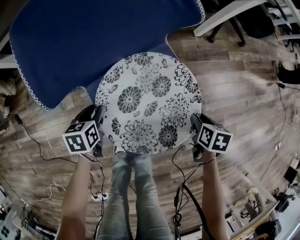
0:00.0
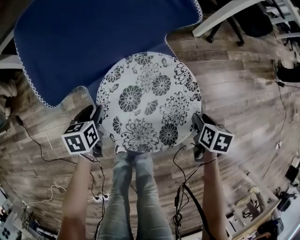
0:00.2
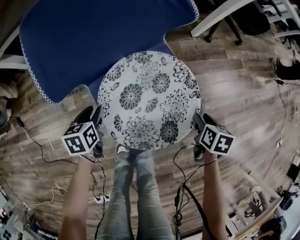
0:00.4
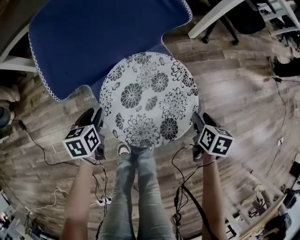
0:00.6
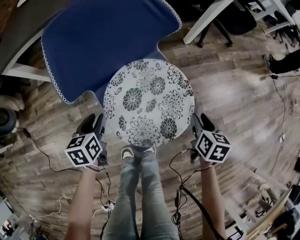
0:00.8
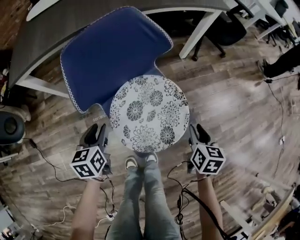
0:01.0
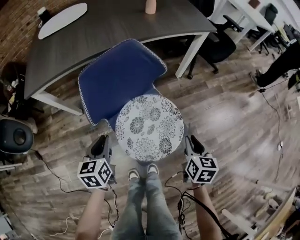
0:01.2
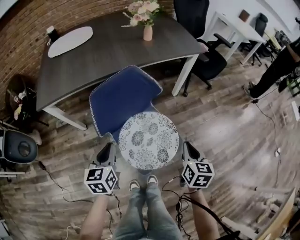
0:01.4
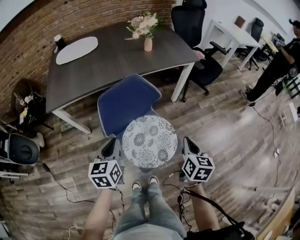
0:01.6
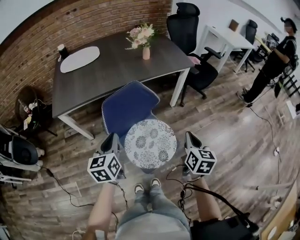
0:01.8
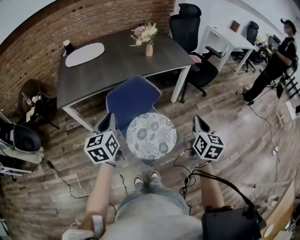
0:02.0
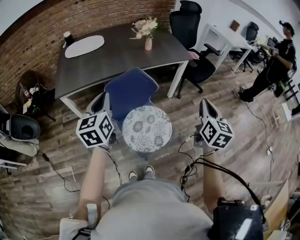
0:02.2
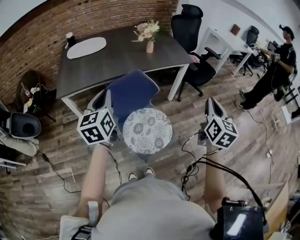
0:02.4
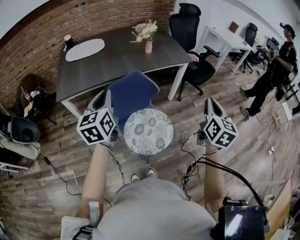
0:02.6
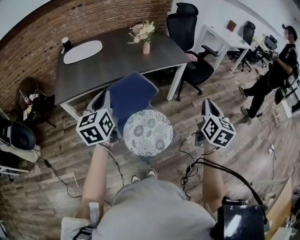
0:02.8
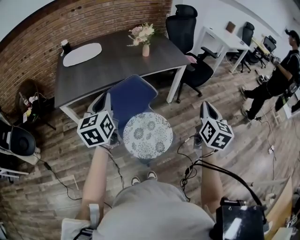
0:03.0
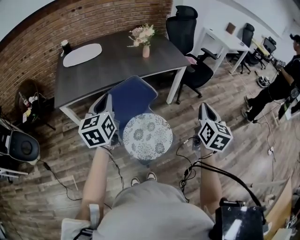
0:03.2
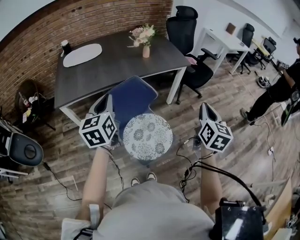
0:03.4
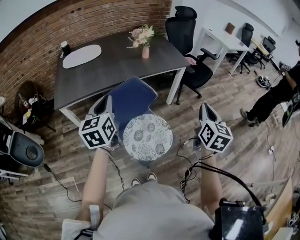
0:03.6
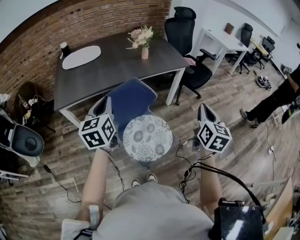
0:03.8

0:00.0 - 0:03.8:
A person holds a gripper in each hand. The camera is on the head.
0:00.0 - 0:01.2: The two grippers go roughly 25 cm backward. The left gripper turns by about 20 degrees. Meanwhile the right gripper turns by some 30 degrees.
0:01.2 - 0:02.6: The left gripper ends up approximately 40 cm from where it was, and changes its angle by approximately 30 degrees; the right gripper shifts by about 40 cm, tilts its fingers approximately 30 degrees upward, and closes its fingers.
0:02.6 - 0:03.8: The grippers move only a little.

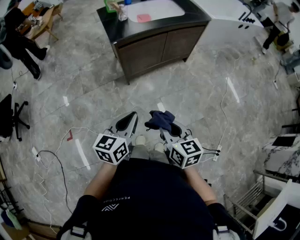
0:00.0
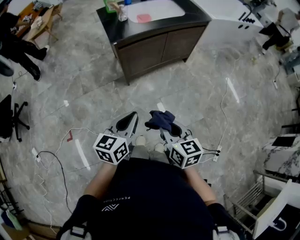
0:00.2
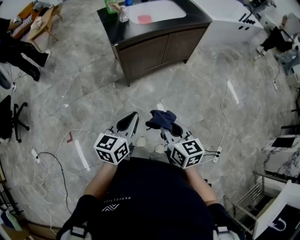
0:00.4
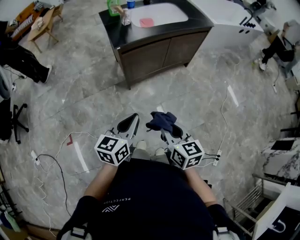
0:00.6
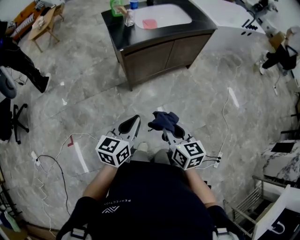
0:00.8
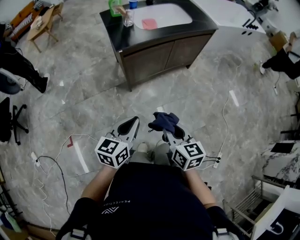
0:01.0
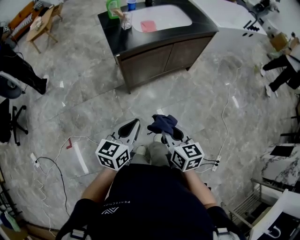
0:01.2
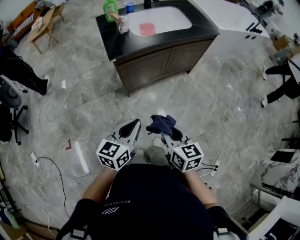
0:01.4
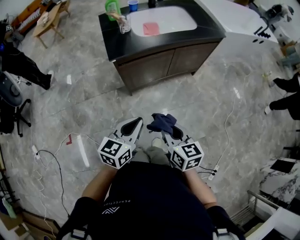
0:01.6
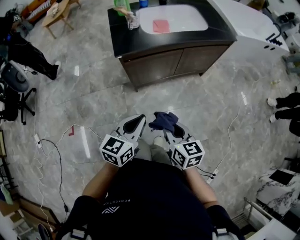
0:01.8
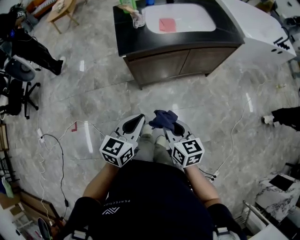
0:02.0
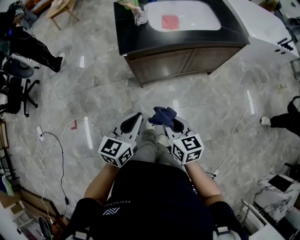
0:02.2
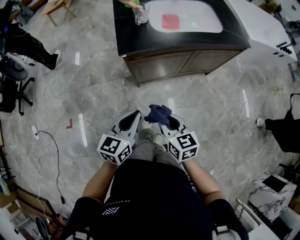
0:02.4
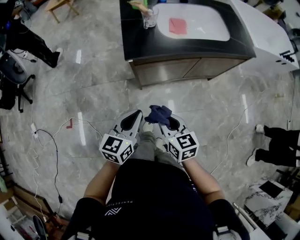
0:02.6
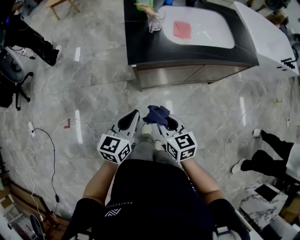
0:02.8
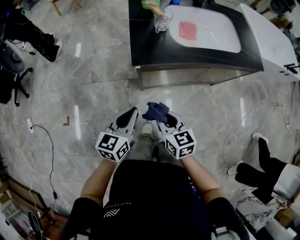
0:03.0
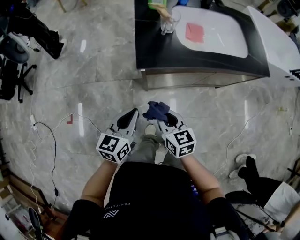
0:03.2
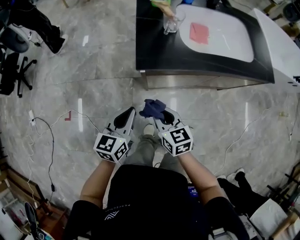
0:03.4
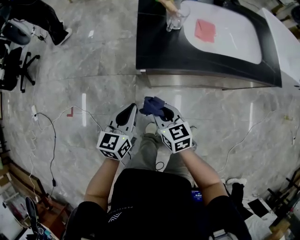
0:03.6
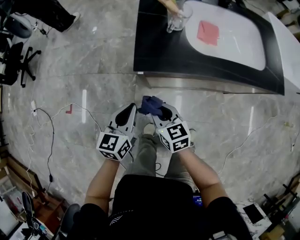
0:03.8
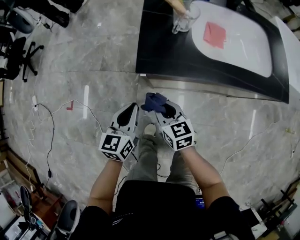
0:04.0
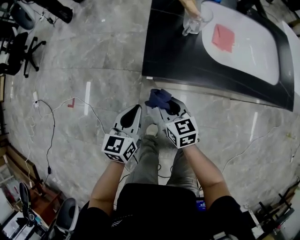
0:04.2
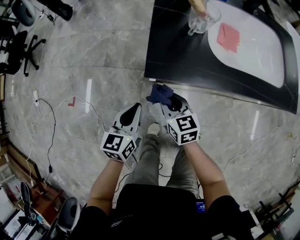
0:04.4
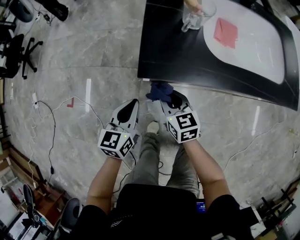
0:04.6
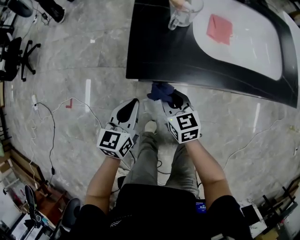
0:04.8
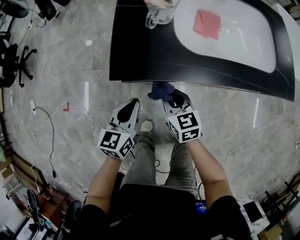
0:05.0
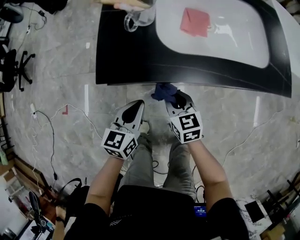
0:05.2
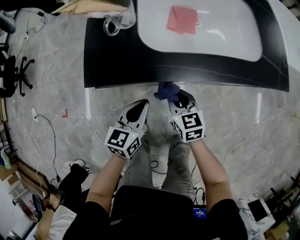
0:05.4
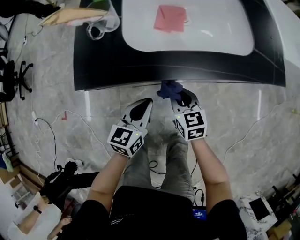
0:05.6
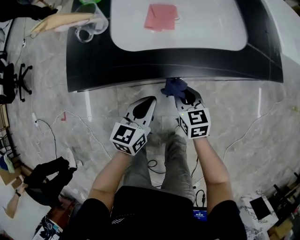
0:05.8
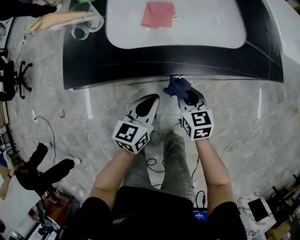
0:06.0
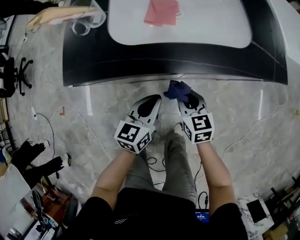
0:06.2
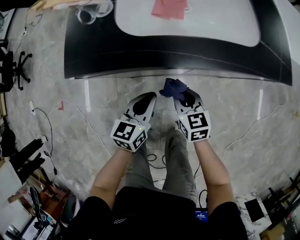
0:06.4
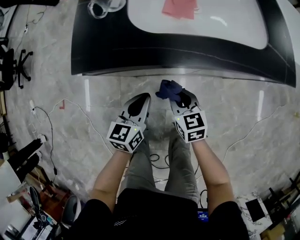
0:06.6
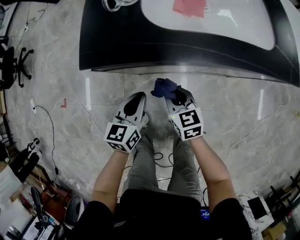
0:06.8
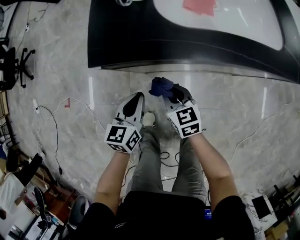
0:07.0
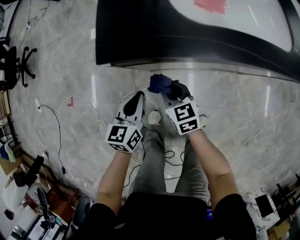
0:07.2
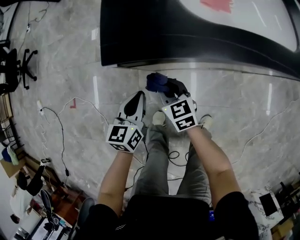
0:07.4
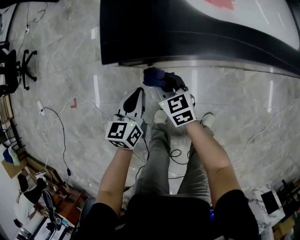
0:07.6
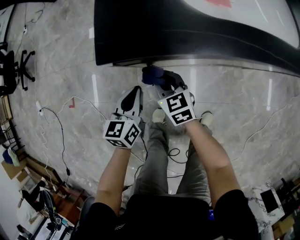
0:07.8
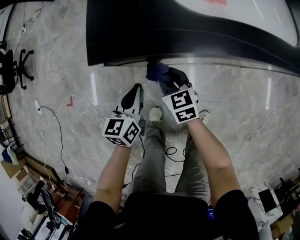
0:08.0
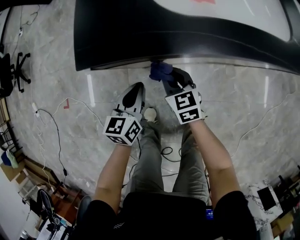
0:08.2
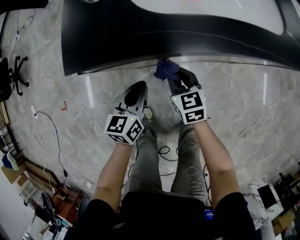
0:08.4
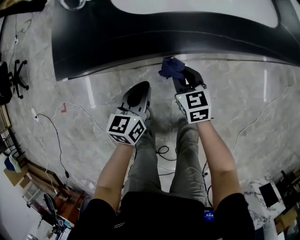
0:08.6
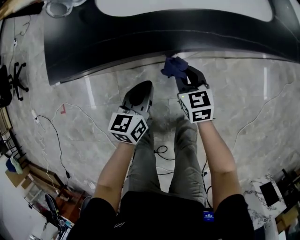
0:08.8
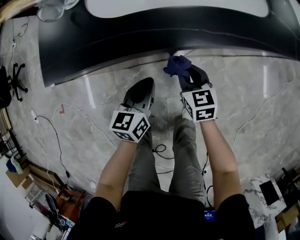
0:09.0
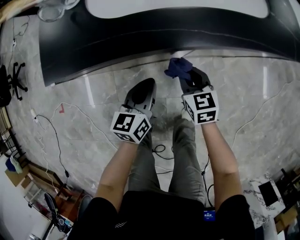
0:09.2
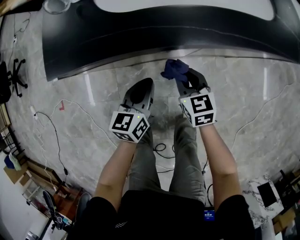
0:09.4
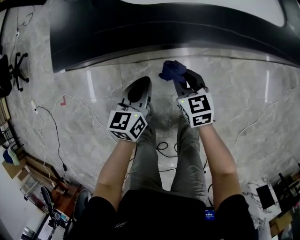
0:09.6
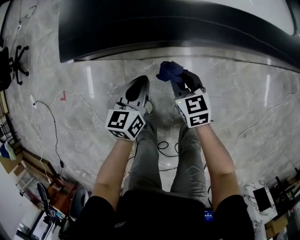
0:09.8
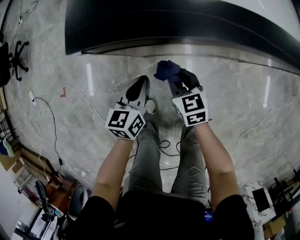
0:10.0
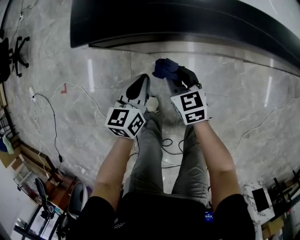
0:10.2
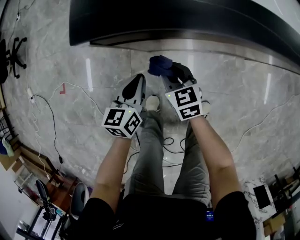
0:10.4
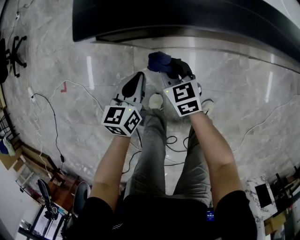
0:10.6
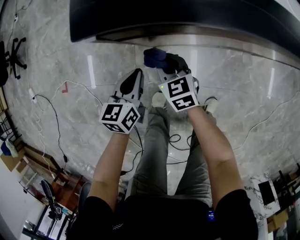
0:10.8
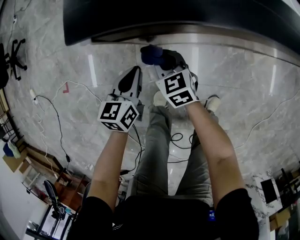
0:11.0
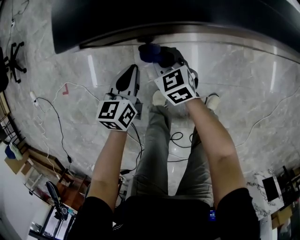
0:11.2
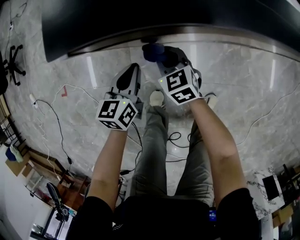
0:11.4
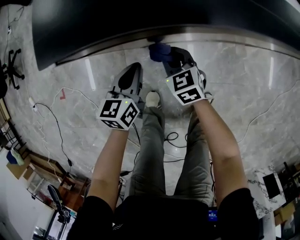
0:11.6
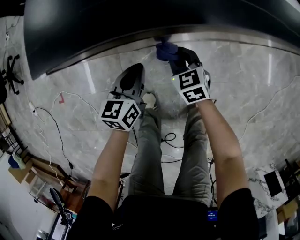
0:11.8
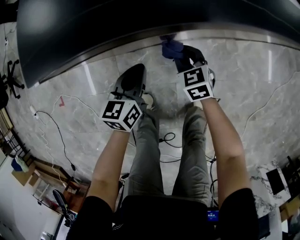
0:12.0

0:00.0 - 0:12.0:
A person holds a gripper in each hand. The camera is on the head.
0:00.0 - 0:01.6: The two grippers go about 15 cm forward.
0:01.6 - 0:03.0: The two grippers go about 20 cm forward and to the left.
0:03.0 - 0:04.4: The left gripper moves downward and forward, roughly 15 cm. Meanwhile the right gripper moves forward and downward, roughly 20 cm.
0:04.4 - 0:06.0: The two grippers go about 35 cm to the right.
0:06.0 - 0:07.6: The two grippers go some 30 cm to the left.
0:07.6 - 0:09.0: The two grippers go roughly 25 cm to the right.
0:09.0 - 0:10.4: Both grippers travel together to the left, about 20 cm.
0:10.4 - 0:12.0: The two grippers go about 15 cm to the right.

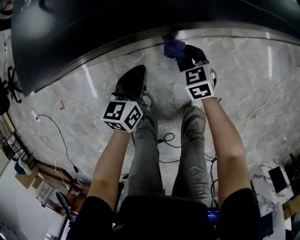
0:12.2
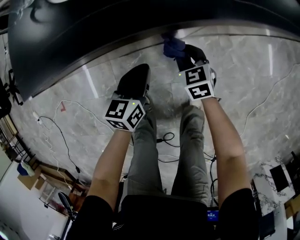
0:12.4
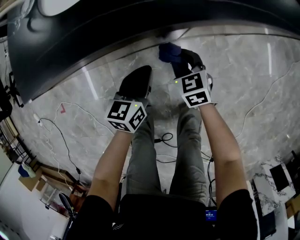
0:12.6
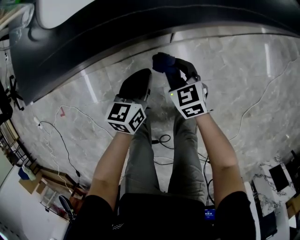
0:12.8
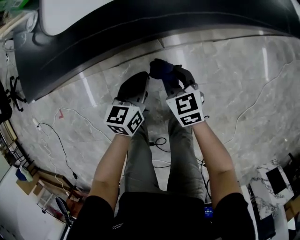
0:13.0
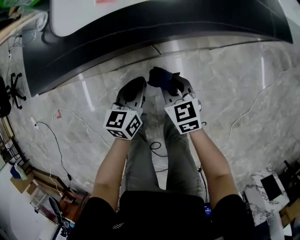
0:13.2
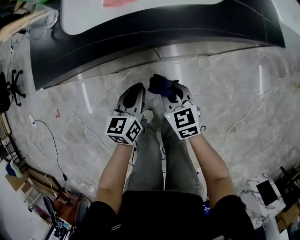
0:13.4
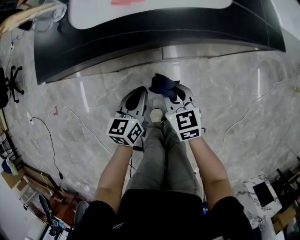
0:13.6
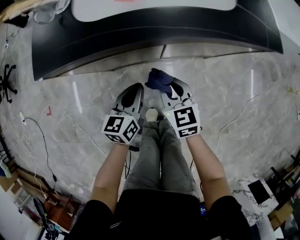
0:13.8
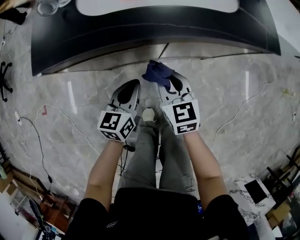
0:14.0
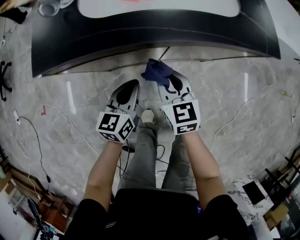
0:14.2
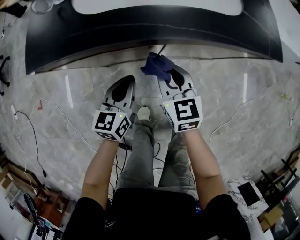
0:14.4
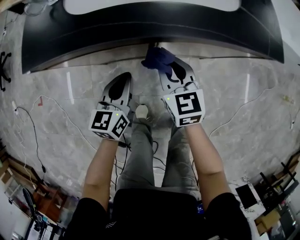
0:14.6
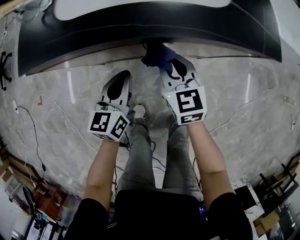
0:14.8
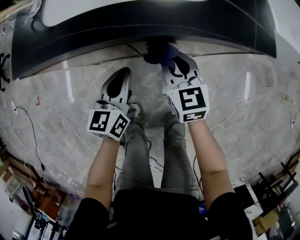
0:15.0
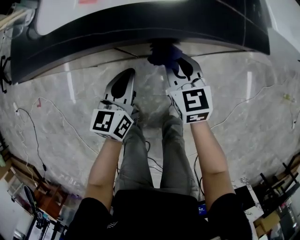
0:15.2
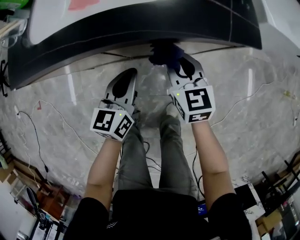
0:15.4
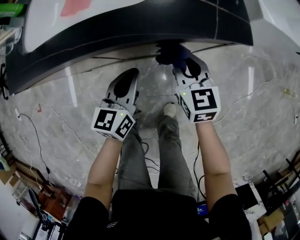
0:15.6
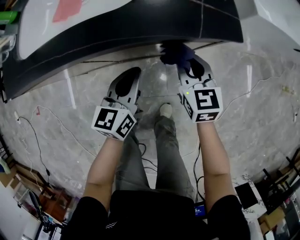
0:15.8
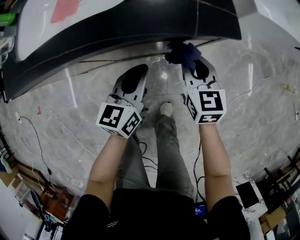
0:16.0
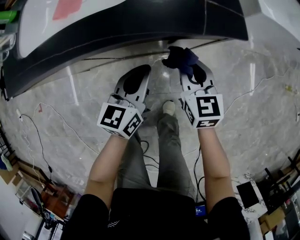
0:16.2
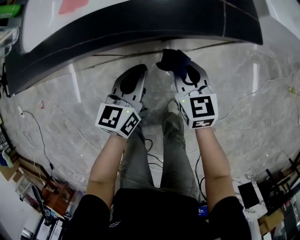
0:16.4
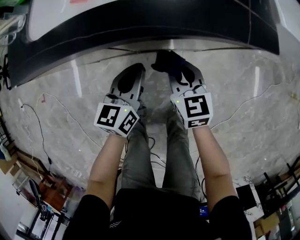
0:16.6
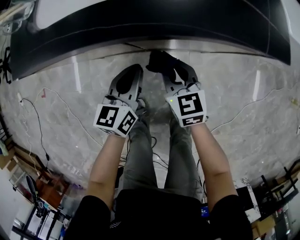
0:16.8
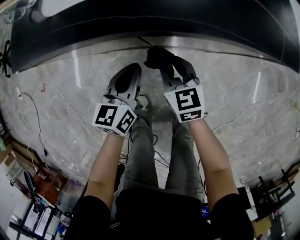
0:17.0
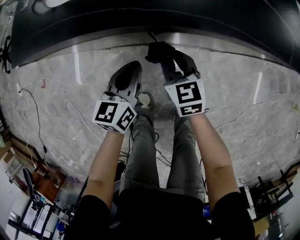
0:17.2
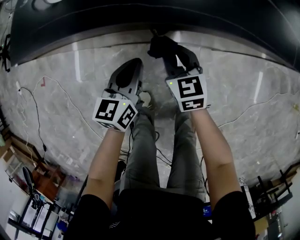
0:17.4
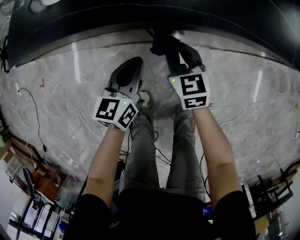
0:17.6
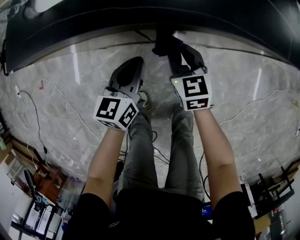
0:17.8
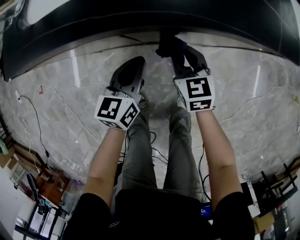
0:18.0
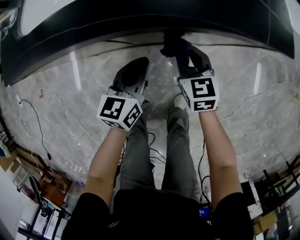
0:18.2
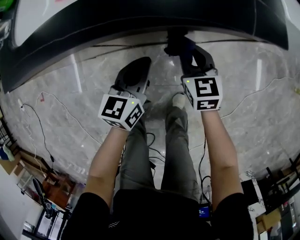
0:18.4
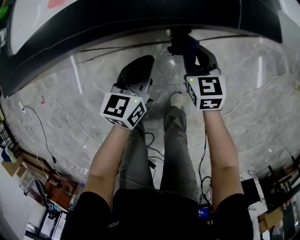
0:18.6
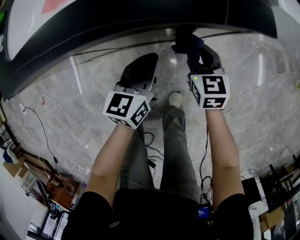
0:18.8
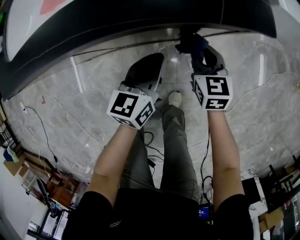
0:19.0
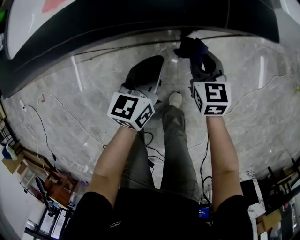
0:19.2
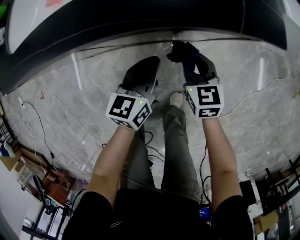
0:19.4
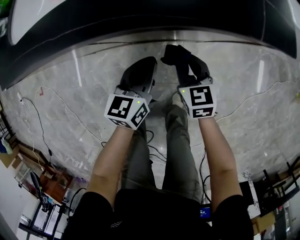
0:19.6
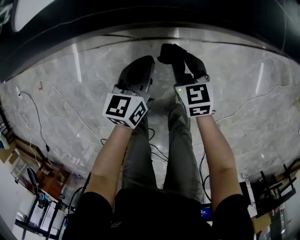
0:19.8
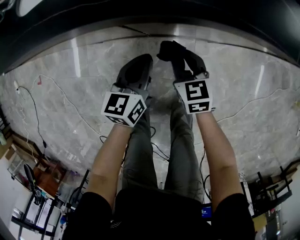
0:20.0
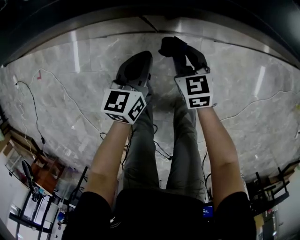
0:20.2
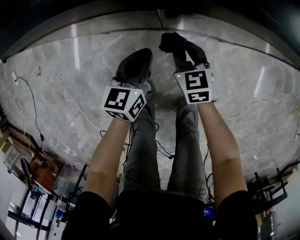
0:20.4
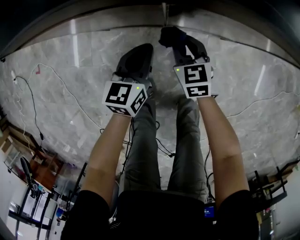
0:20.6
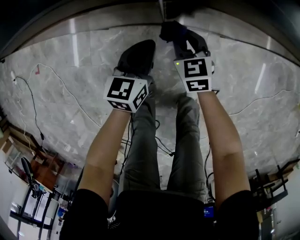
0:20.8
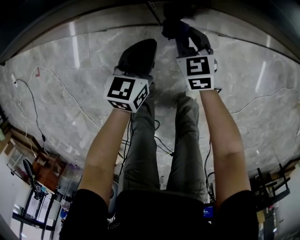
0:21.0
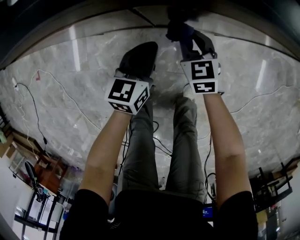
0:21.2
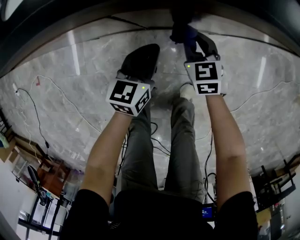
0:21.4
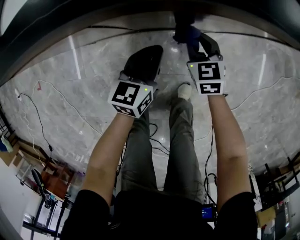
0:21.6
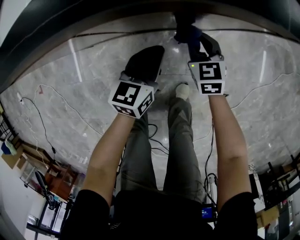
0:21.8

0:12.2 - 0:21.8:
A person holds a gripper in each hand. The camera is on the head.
0:12.2 - 0:13.8: The left gripper moves to the right and upward, approximately 15 cm, while the right gripper goes some 15 cm upward.
0:13.8 - 0:15.4: Both grippers move to the right, approximately 20 cm.
0:15.4 - 0:17.0: The right gripper is displaced to the left and downward by approximately 15 cm; the left gripper heads to the left, covering approximately 10 cm.
0:17.0 - 0:18.6: The grippers both shift to the right by some 20 cm.
0:18.6 - 0:20.2: The grippers both shift to the left by roughly 15 cm.
0:20.2 - 0:21.8: Both grippers travel together to the right, about 15 cm.
